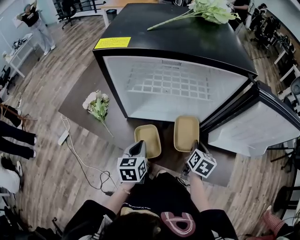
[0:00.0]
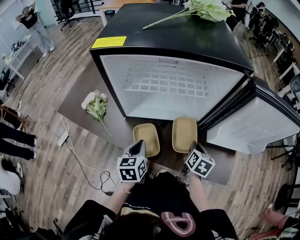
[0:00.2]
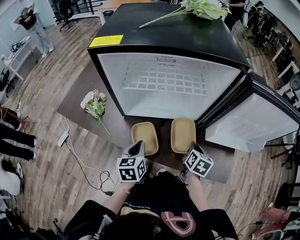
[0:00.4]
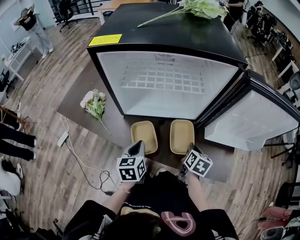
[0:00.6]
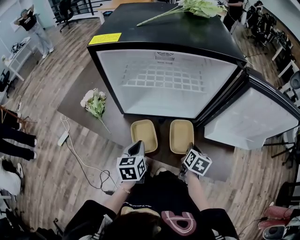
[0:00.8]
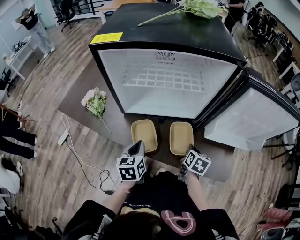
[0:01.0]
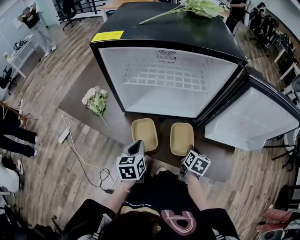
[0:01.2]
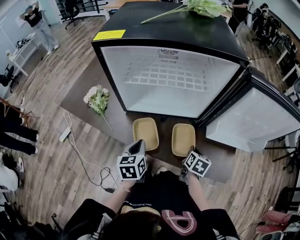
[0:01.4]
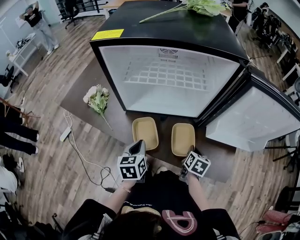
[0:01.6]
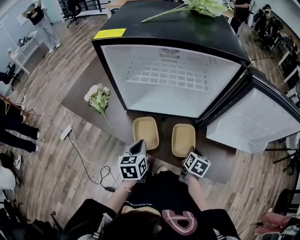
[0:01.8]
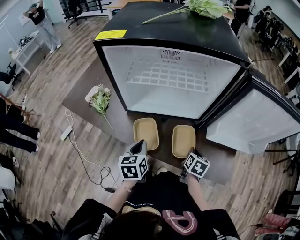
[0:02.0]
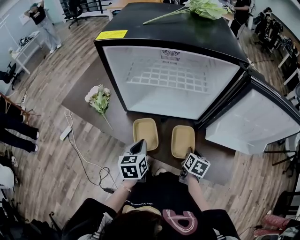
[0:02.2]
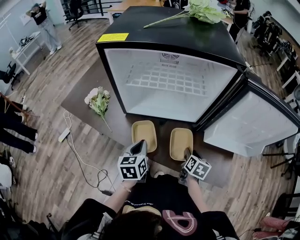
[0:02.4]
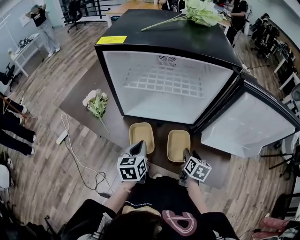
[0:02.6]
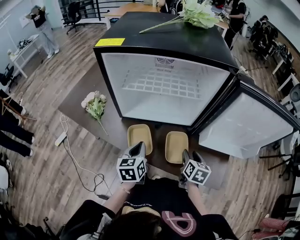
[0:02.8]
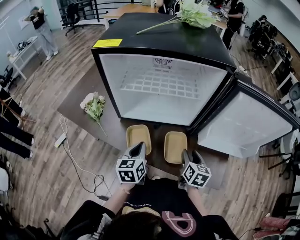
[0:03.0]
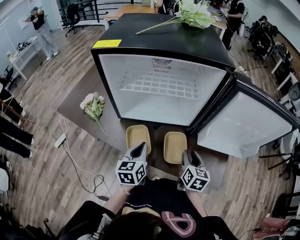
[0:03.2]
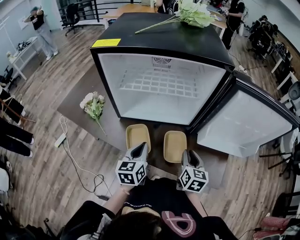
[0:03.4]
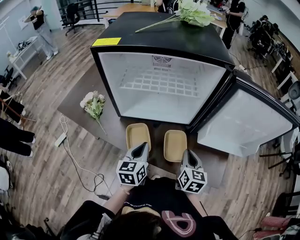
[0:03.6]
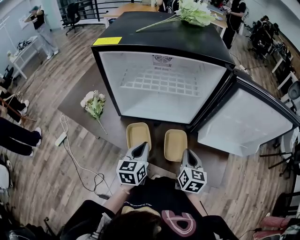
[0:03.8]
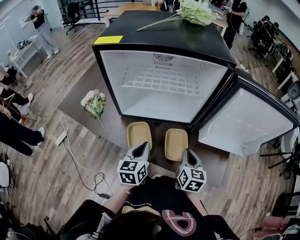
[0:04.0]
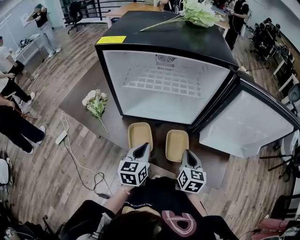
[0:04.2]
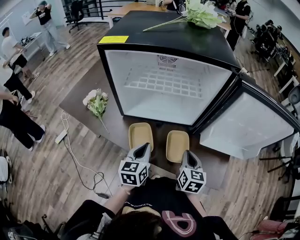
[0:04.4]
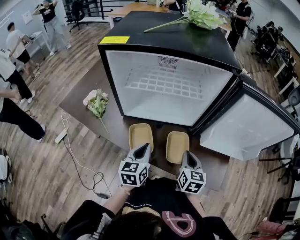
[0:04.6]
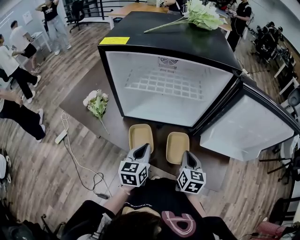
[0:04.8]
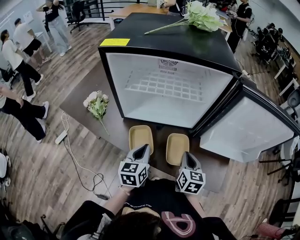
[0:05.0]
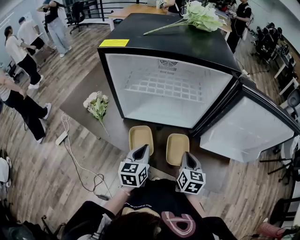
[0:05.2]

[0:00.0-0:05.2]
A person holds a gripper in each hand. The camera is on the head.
0:00.0 to 0:01.8: The right gripper is displaced downward and backward by some 10 cm.
0:01.8 to 0:03.4: The right gripper is displaced upward by some 10 cm, turns by roughly 20 degrees, and opens, then closes again, while the left gripper ends up roughly 5 cm from where it was.
0:03.4 to 0:05.2: The right gripper closes.

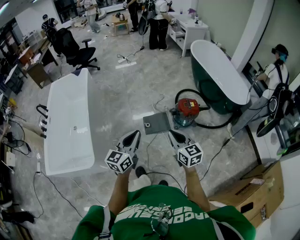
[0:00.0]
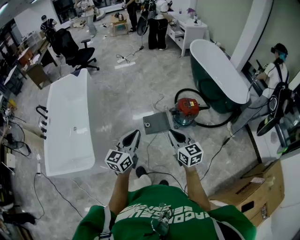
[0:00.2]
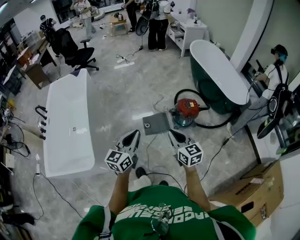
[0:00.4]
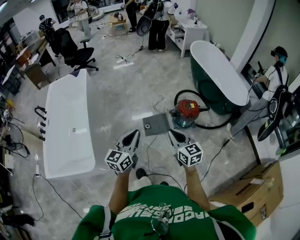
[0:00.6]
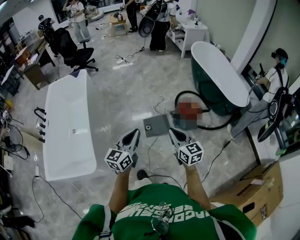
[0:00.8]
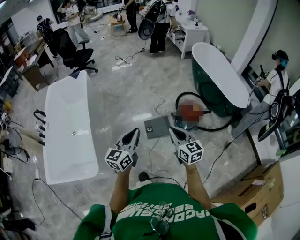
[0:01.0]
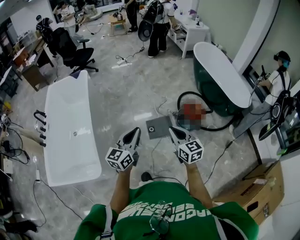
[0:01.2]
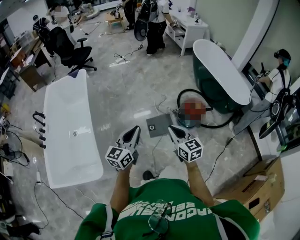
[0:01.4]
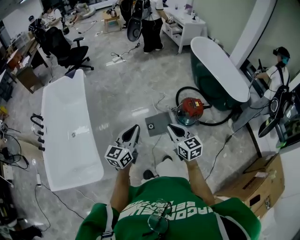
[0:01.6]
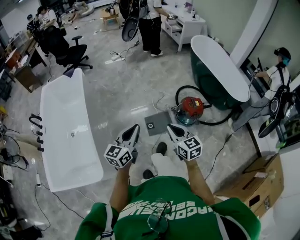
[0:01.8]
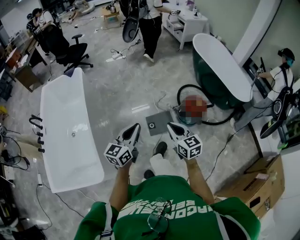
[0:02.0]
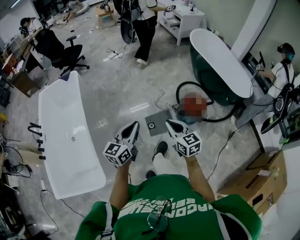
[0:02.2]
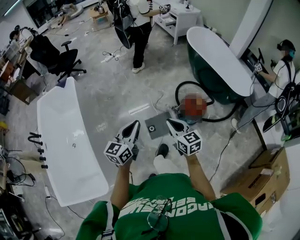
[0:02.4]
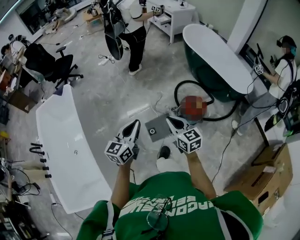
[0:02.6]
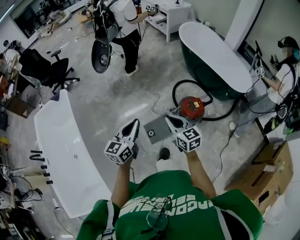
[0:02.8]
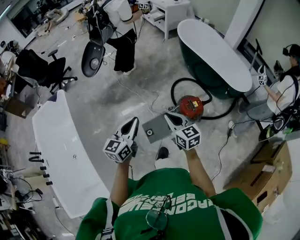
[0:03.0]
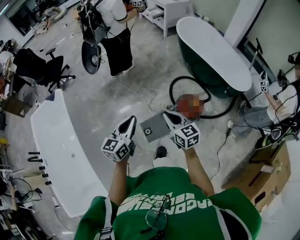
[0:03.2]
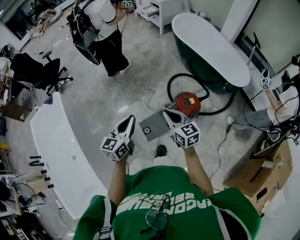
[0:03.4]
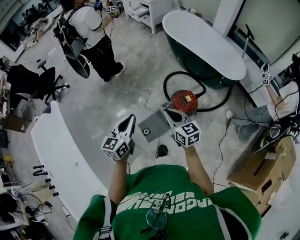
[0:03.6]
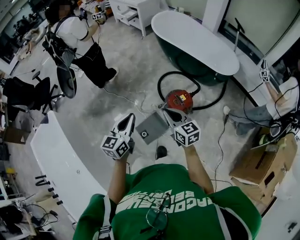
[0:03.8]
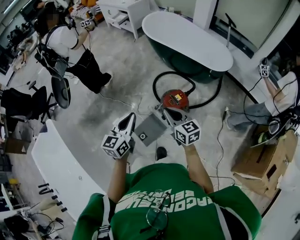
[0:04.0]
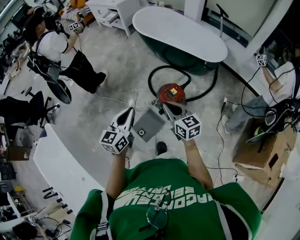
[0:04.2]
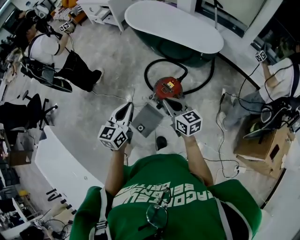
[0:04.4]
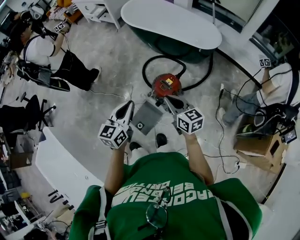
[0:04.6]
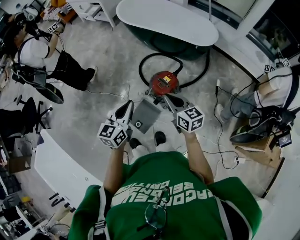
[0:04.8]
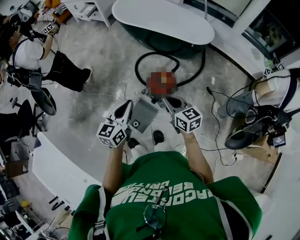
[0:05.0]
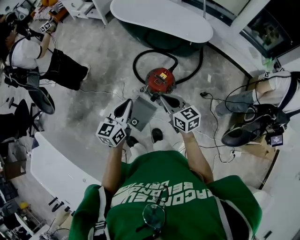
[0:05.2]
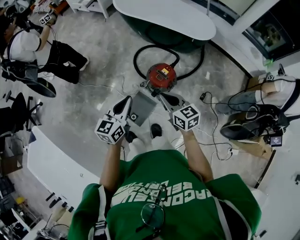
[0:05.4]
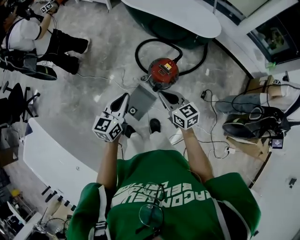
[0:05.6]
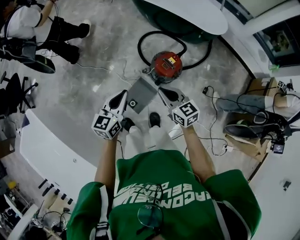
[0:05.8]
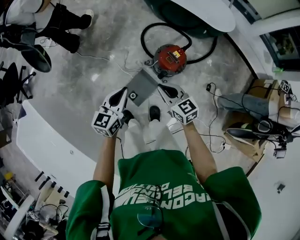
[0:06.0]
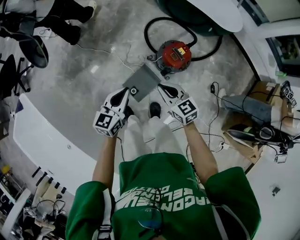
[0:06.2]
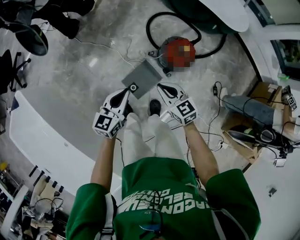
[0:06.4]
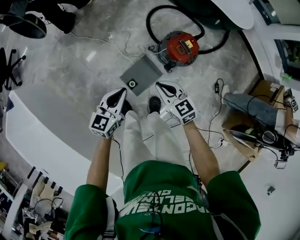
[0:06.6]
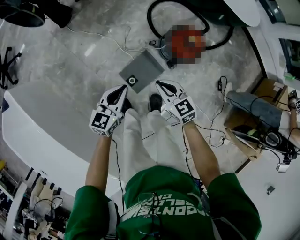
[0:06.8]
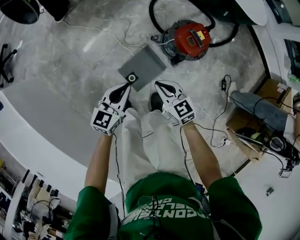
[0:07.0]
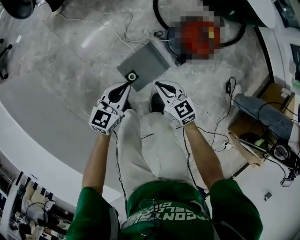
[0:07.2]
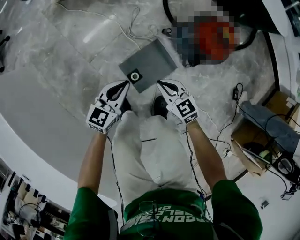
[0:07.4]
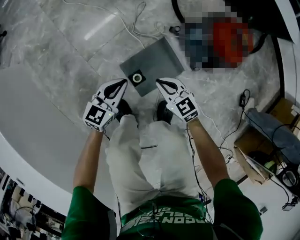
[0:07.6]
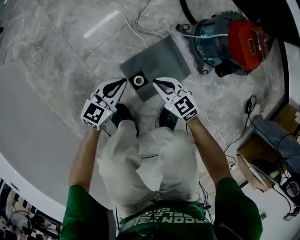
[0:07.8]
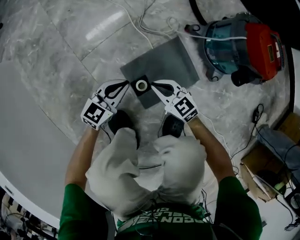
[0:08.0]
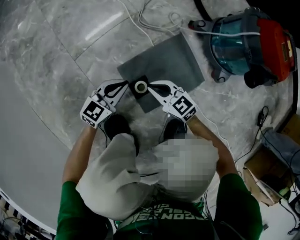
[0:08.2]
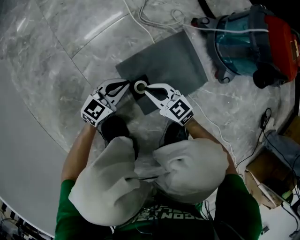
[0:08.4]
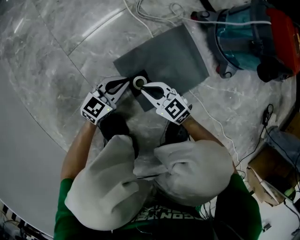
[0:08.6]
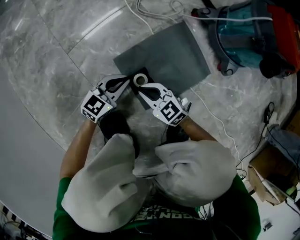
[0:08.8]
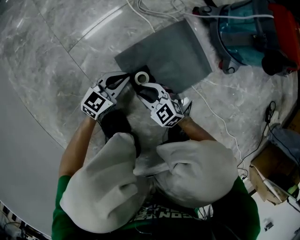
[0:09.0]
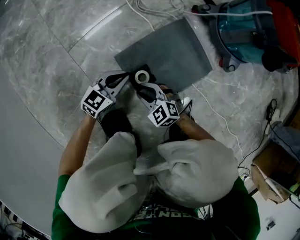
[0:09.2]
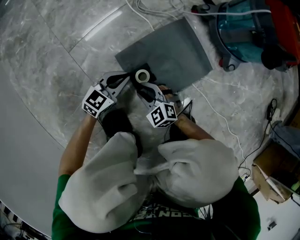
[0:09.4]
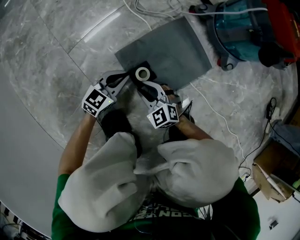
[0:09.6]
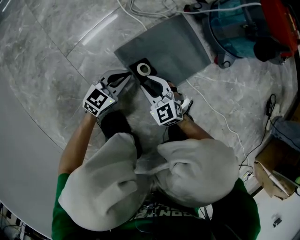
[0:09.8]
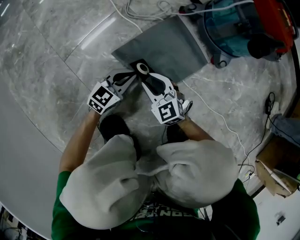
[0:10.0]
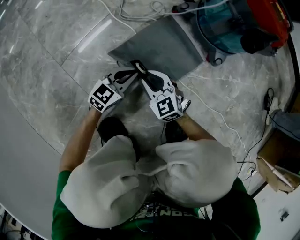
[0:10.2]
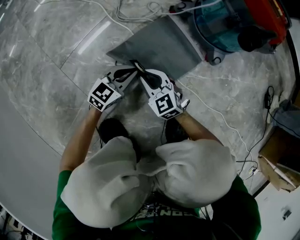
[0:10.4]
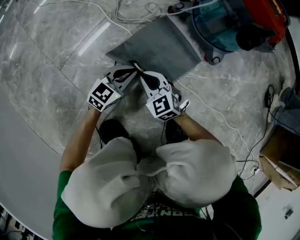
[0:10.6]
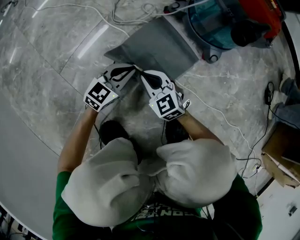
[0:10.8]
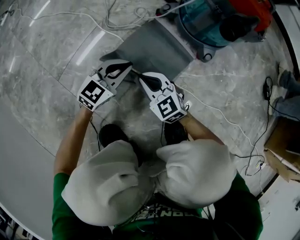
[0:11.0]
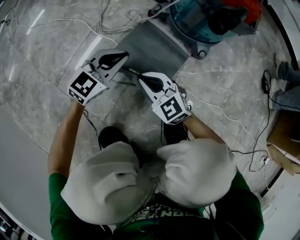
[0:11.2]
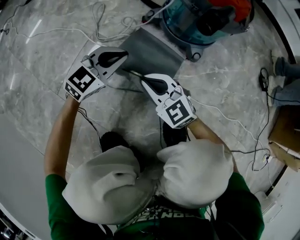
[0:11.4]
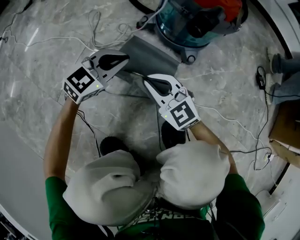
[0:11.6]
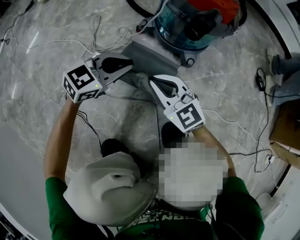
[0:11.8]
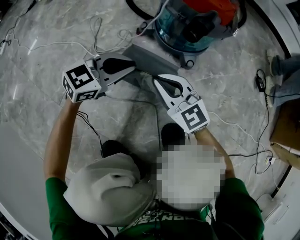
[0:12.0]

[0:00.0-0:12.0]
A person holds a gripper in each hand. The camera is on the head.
0:00.0 to 0:01.6: The grippers both shift to the left and forward by about 15 cm.
0:01.6 to 0:03.0: Both grippers travel together forward, roughly 30 cm.
0:03.0 to 0:04.4: The left gripper shifts approximately 20 cm to the right and forward, and turns by about 20 degrees; the right gripper moves to the right, about 20 cm, and rotates approximately 20 degrees.
0:04.4 to 0:06.0: Both grippers travel together to the left and downward, about 20 cm.
0:06.0 to 0:07.6: The two grippers go roughly 60 cm downward. The right gripper swivels roughly 20 degrees.
0:07.6 to 0:09.0: The two grippers go approximately 35 cm downward. The right gripper opens its fingers.
0:09.0 to 0:10.4: The left gripper moves to the right, about 10 cm, while the right gripper shifts about 10 cm forward and to the right, and rotates some 20 degrees.
0:10.4 to 0:12.0: The left gripper heads upward, covering some 20 cm, and swivels approximately 30 degrees. The right gripper travels upward and to the right by approximately 20 cm.

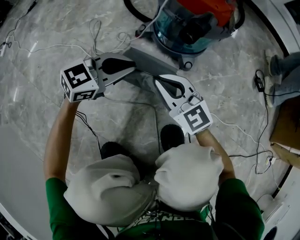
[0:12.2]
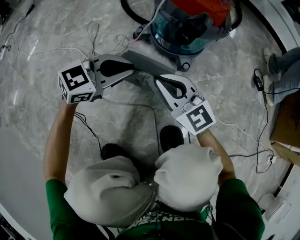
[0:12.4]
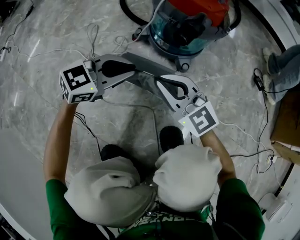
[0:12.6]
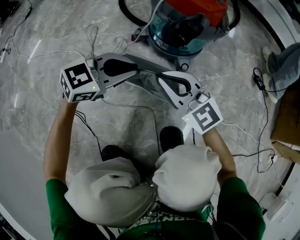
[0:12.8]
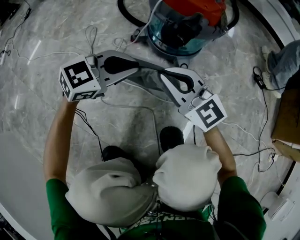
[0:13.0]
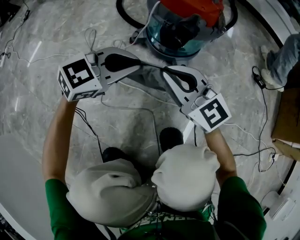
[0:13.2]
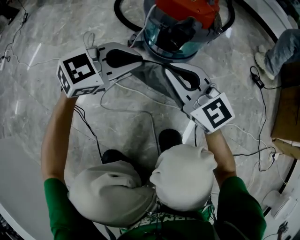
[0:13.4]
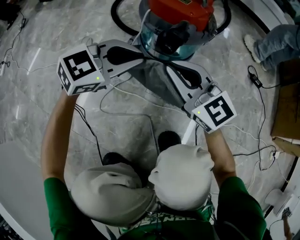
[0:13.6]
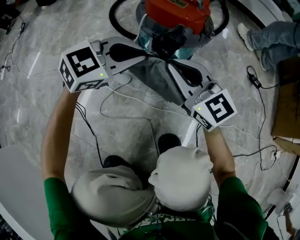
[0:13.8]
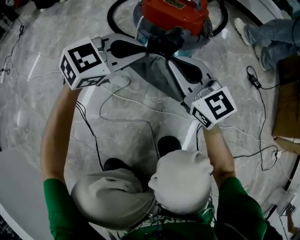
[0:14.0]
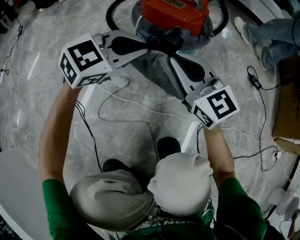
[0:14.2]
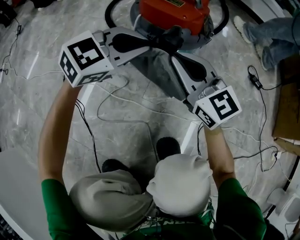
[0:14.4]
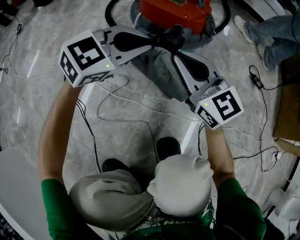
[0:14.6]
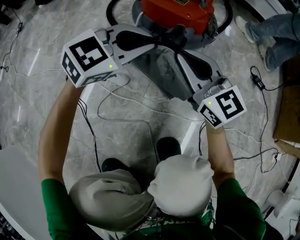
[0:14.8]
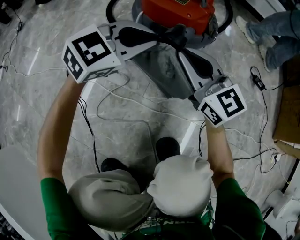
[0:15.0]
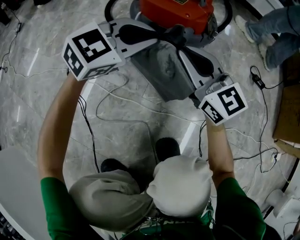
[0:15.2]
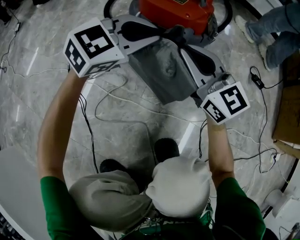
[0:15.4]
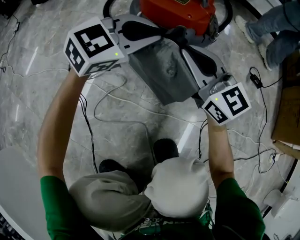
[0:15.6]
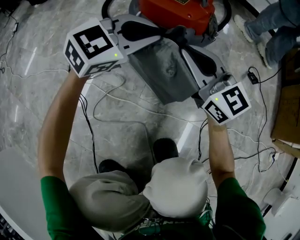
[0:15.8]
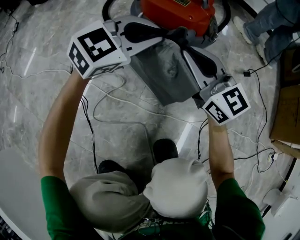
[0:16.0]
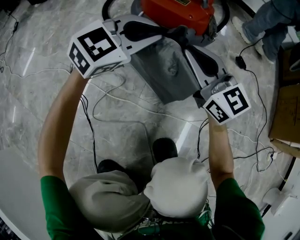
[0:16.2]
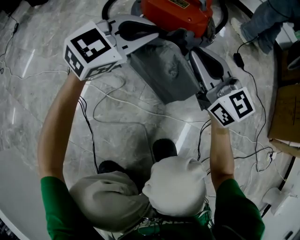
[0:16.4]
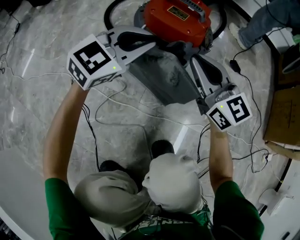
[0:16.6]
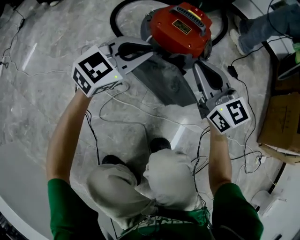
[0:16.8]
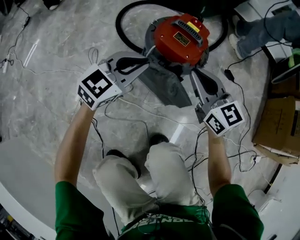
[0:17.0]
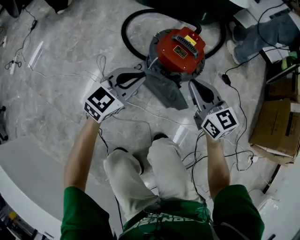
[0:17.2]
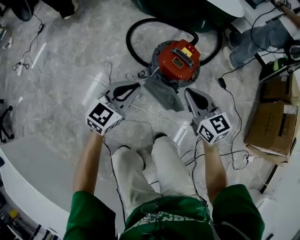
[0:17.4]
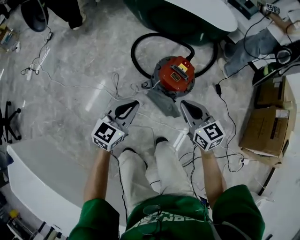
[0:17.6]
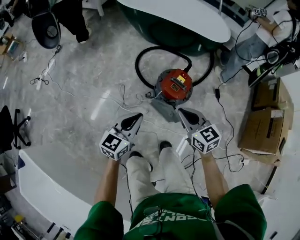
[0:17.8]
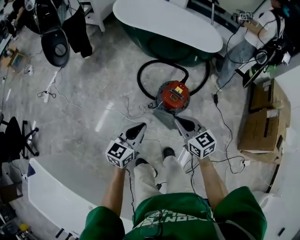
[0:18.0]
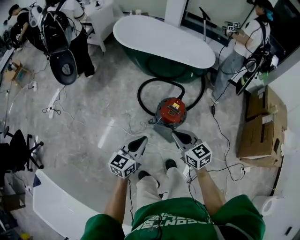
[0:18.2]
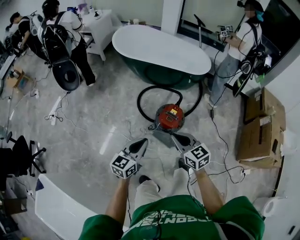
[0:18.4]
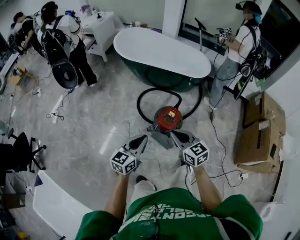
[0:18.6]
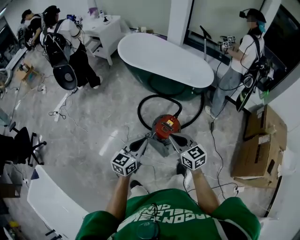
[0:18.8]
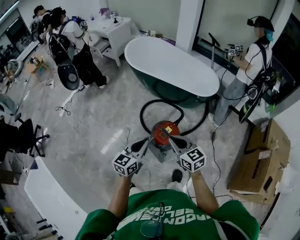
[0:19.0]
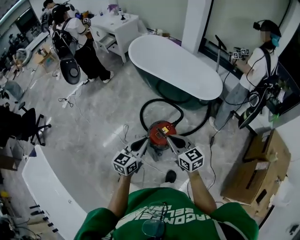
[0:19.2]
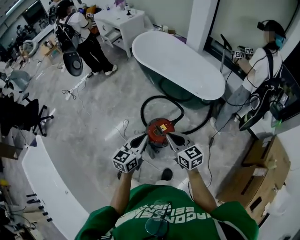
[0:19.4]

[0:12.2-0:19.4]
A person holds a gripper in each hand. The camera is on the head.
0:12.2 to 0:13.6: The right gripper is displaced upward and forward by some 10 cm. The left gripper travels upward, forward and to the right by approximately 10 cm.
0:13.6 to 0:15.0: Both grippers move forward, approximately 10 cm.
0:15.0 to 0:16.6: The grippers move only a little.
0:16.6 to 0:18.0: The two grippers go about 50 cm upward. The left gripper changes its angle by about 40 degrees; the right gripper swivels about 20 degrees.
0:18.0 to 0:19.4: The grippers both shift to the right and upward by approximately 30 cm. The left gripper turns by roughly 20 degrees.
